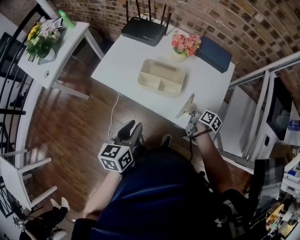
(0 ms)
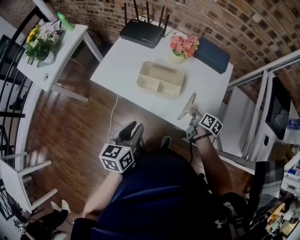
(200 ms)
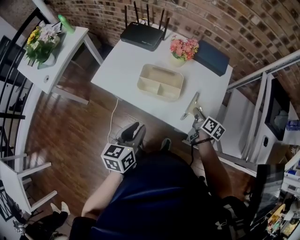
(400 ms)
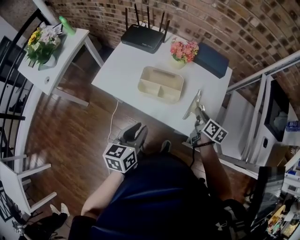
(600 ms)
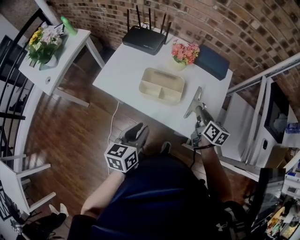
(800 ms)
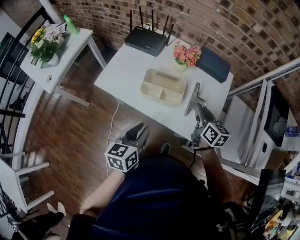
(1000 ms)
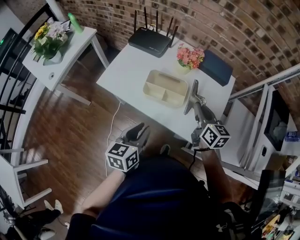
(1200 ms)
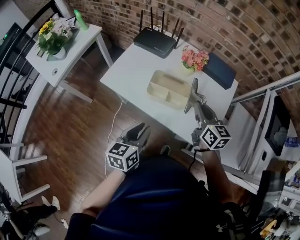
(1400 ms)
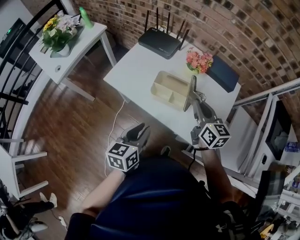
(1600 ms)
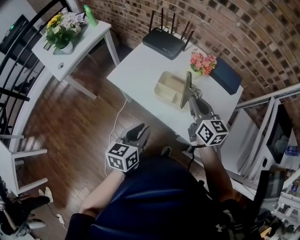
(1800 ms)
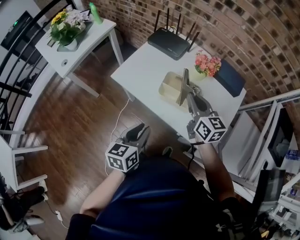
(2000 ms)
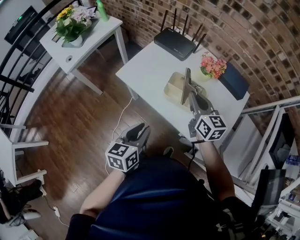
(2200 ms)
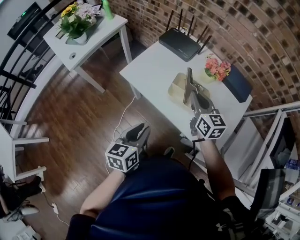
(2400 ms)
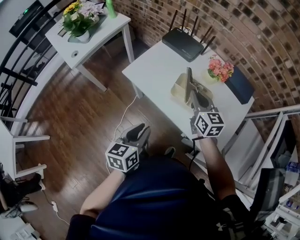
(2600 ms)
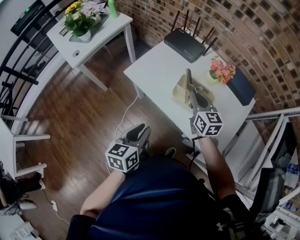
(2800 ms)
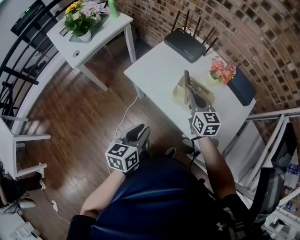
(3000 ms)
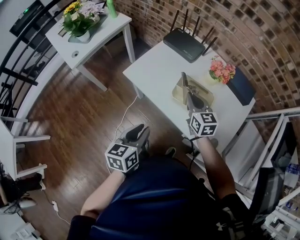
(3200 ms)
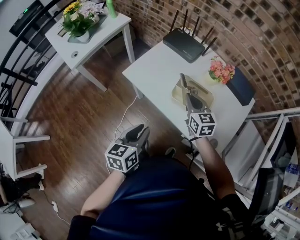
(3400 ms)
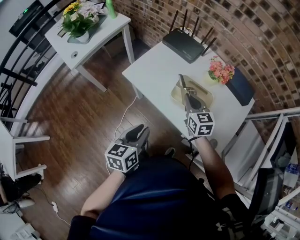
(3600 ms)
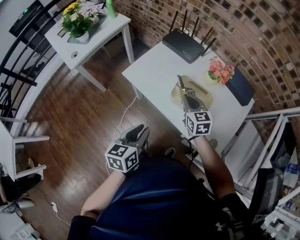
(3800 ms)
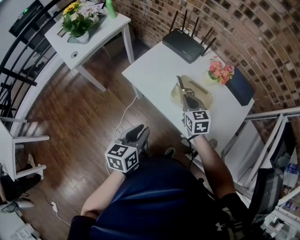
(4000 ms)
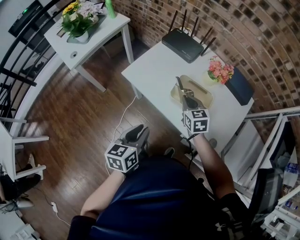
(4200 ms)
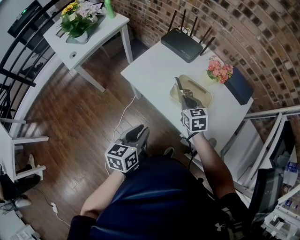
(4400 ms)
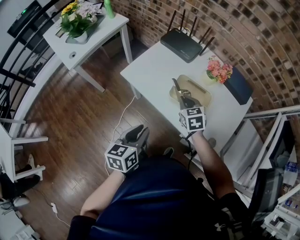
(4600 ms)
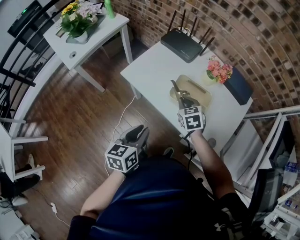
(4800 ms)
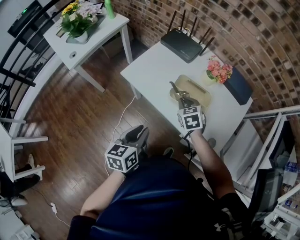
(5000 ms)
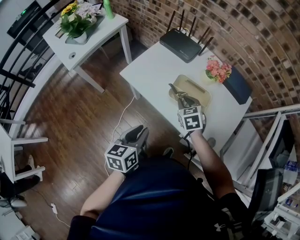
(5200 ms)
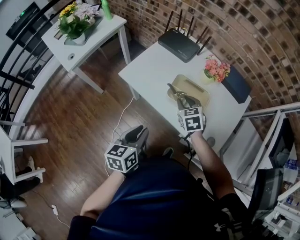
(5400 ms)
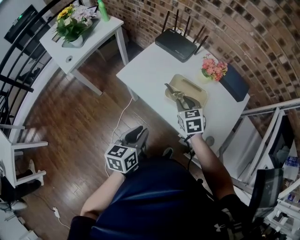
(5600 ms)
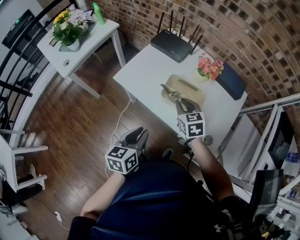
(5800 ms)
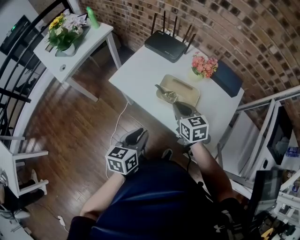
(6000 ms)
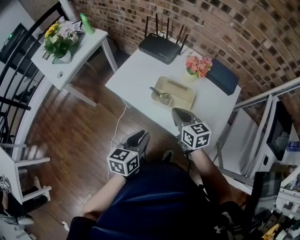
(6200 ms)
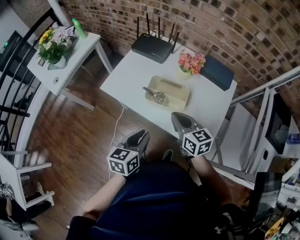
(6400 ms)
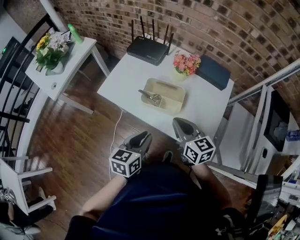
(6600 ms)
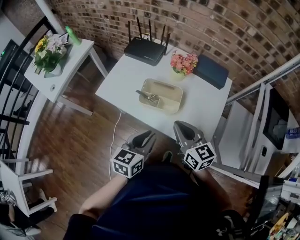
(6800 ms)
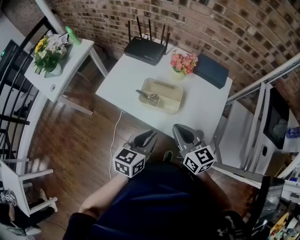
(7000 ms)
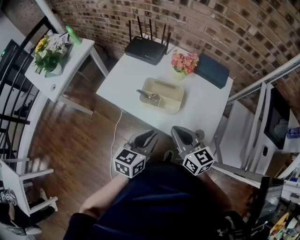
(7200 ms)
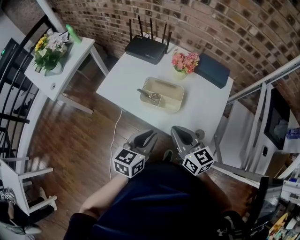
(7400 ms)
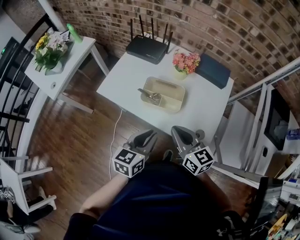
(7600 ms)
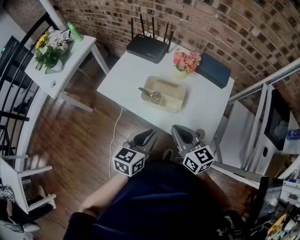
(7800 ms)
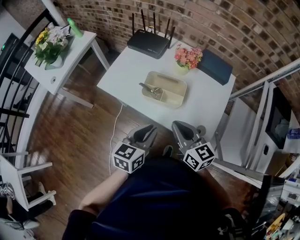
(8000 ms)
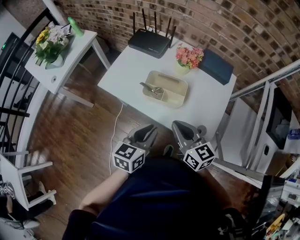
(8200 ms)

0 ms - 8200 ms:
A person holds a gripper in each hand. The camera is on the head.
0 ms - 1600 ms: The right gripper travels upward and to the left by approximately 25 cm, and rolls counterclockwise, seen from behind, by about 50 degrees.
1600 ms - 3200 ms: The right gripper moves to the left, downward and forward, about 15 cm, while the left gripper shifts approximately 10 cm to the left.
3200 ms - 5000 ms: The right gripper goes roughly 5 cm downward, and swivels about 30 degrees.
5000 ms - 6600 ms: The left gripper goes some 10 cm to the right. Meanwhile the right gripper heads upward, backward and to the right, covering some 20 cm, and points its fingers about 30 degrees further upward.
6600 ms - 8200 ms: The grippers make only small movements.

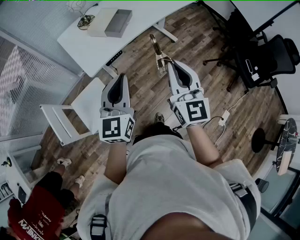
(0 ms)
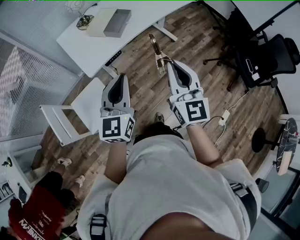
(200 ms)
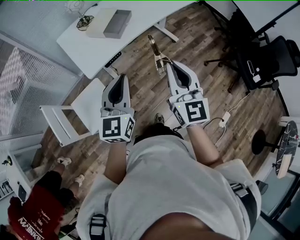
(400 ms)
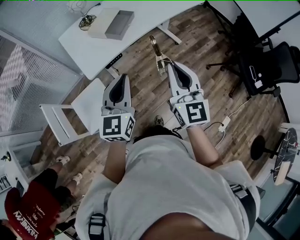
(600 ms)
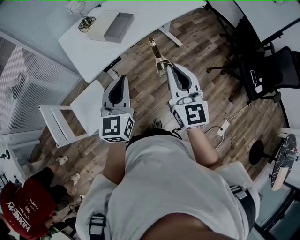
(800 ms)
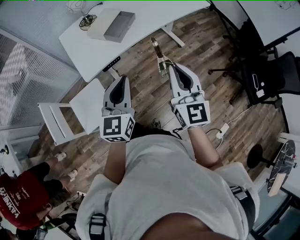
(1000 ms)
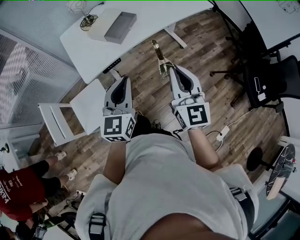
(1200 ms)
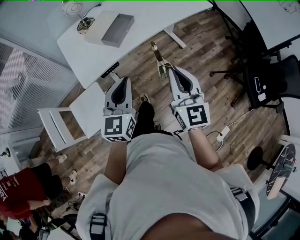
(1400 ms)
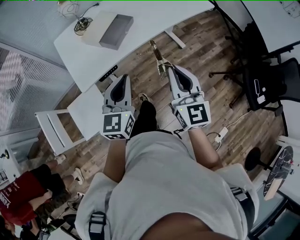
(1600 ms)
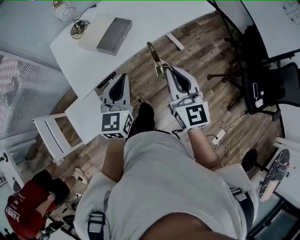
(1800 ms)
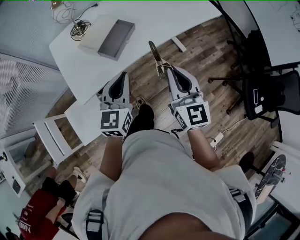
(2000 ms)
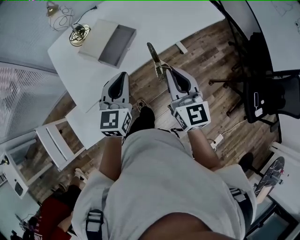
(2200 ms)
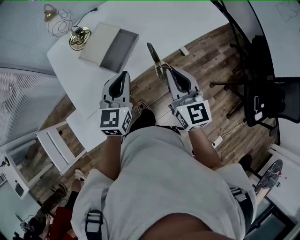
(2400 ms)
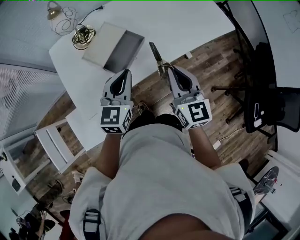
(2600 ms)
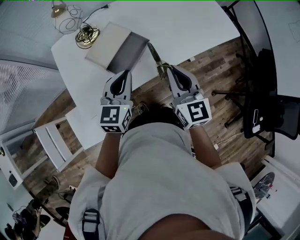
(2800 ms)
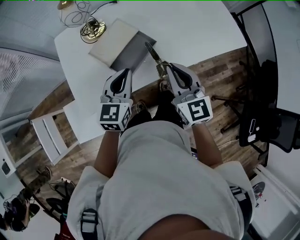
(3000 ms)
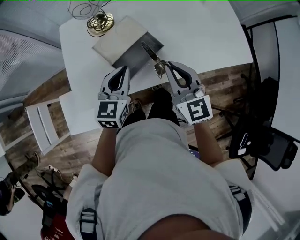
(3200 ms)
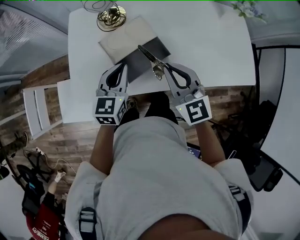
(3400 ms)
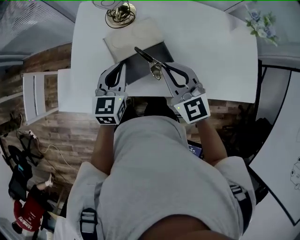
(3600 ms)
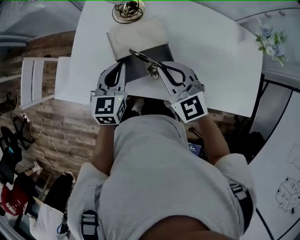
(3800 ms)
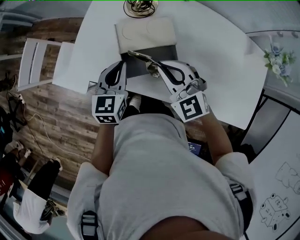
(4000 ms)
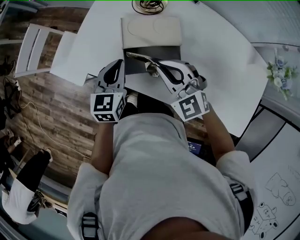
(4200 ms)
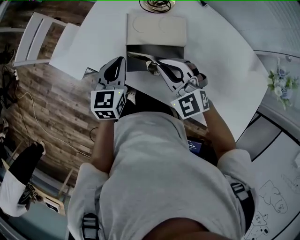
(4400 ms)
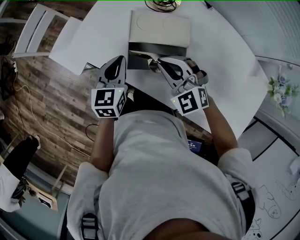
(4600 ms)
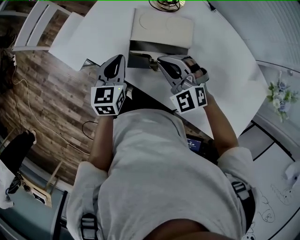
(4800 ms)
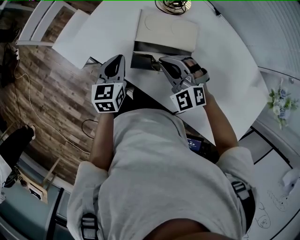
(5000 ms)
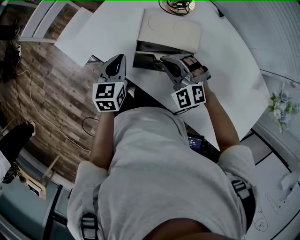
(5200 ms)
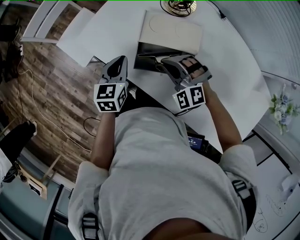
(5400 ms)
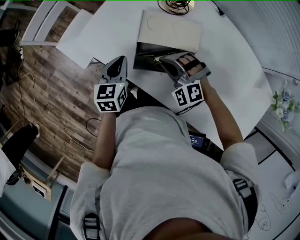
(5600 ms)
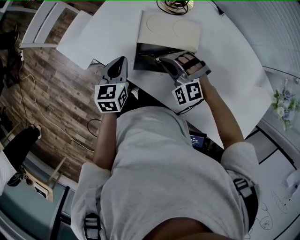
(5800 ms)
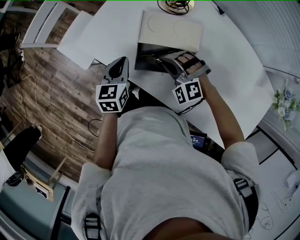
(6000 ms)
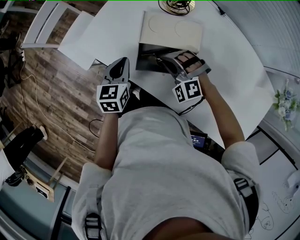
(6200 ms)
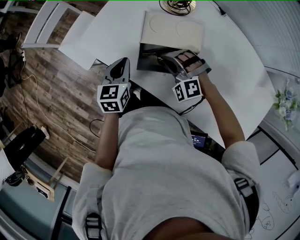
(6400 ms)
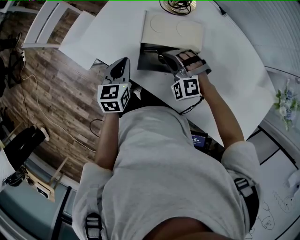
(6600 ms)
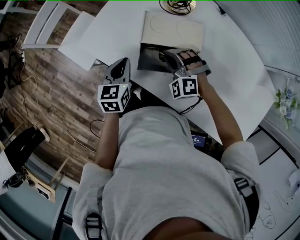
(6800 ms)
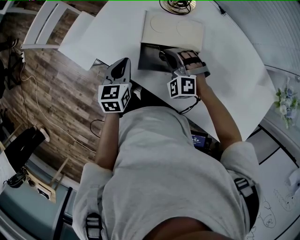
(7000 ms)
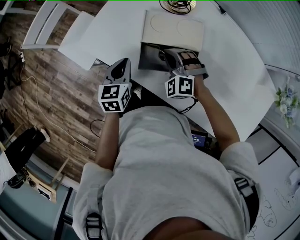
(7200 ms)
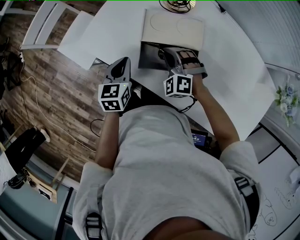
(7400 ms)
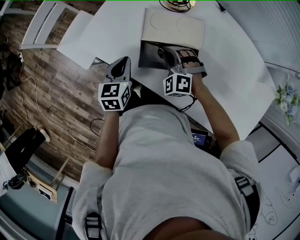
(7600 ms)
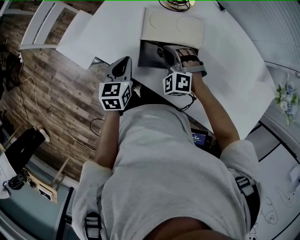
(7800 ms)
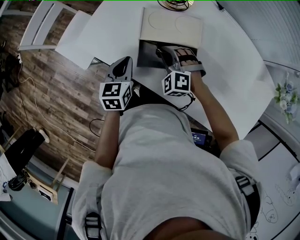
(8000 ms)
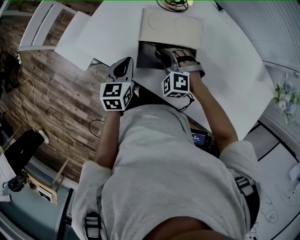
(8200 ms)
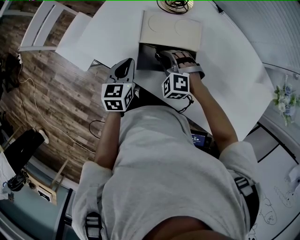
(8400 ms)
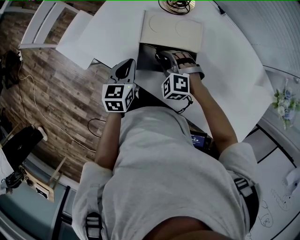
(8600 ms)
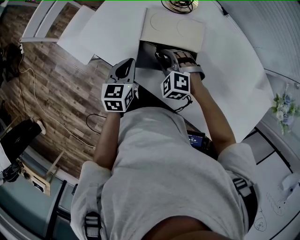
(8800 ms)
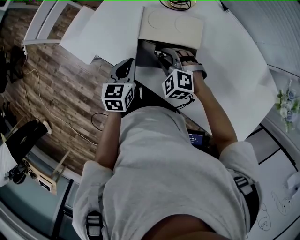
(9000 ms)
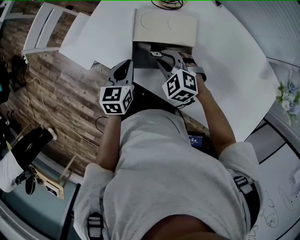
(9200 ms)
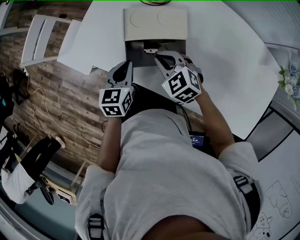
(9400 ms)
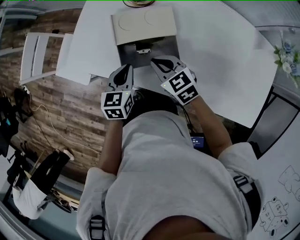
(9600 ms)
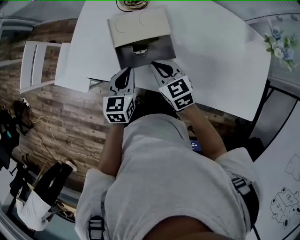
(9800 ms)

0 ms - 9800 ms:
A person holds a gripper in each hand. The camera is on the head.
0 ms - 1400 ms: The right gripper is displaced forward and to the right by approximately 15 cm, while the left gripper moves forward, to the right and downward, roughly 15 cm.
1400 ms - 2800 ms: Both grippers move forward, approximately 30 cm.
2800 ms - 4200 ms: The left gripper moves some 15 cm, and swivels some 60 degrees, while the right gripper moves some 20 cm, and turns by roughly 80 degrees.
4200 ms - 5600 ms: The left gripper is displaced downward by about 5 cm; the right gripper travels downward by some 10 cm, and swivels some 40 degrees.
5600 ms - 7000 ms: The grippers move only a little.
7000 ms - 8400 ms: There are only small adjustments of the grippers.
8400 ms - 9800 ms: The left gripper shifts approximately 5 cm to the right, while the right gripper is displaced upward and backward by roughly 10 cm, rolls clockwise, seen from behind, by approximately 70 degrees, and opens, then closes once more.

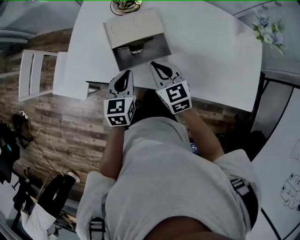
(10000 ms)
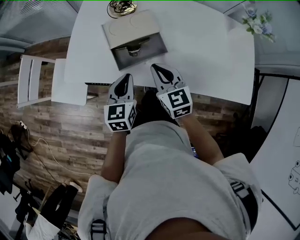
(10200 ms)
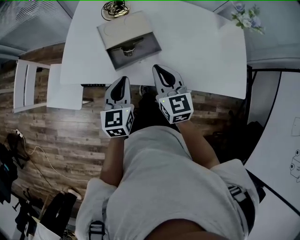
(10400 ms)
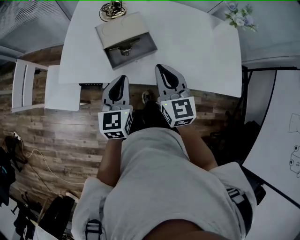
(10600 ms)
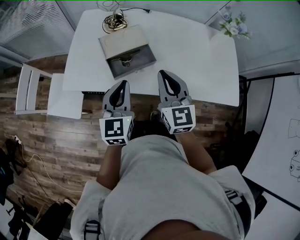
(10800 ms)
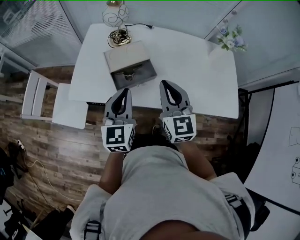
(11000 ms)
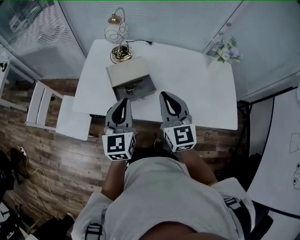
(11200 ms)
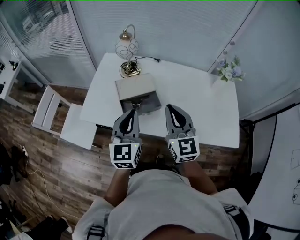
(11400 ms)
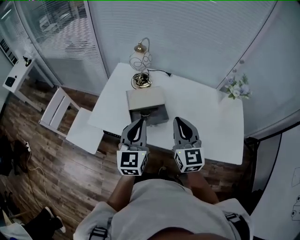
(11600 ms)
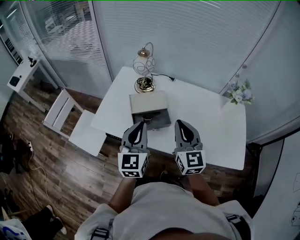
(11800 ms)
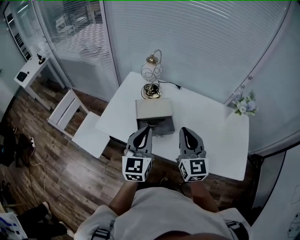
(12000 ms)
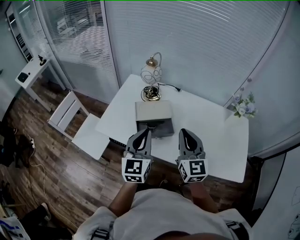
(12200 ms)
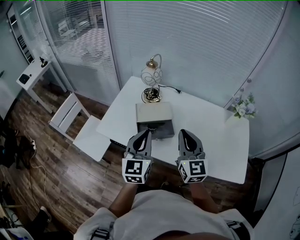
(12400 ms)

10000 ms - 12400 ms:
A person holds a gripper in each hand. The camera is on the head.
10000 ms - 11200 ms: The grippers both shift upward by approximately 20 cm. The left gripper swivels about 30 degrees. Meanwhile the right gripper changes its angle by roughly 30 degrees.
11200 ms - 12400 ms: The grippers stay close to where they were, moving slightly.

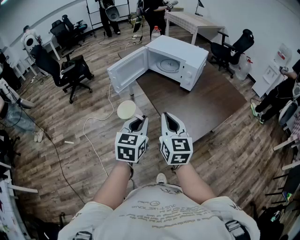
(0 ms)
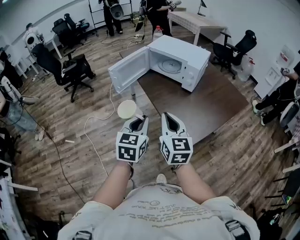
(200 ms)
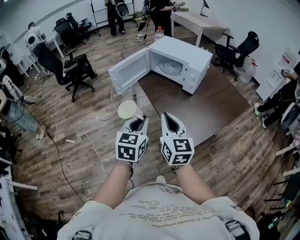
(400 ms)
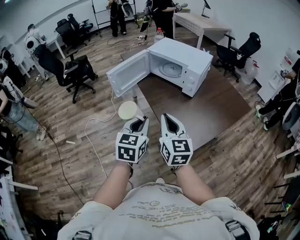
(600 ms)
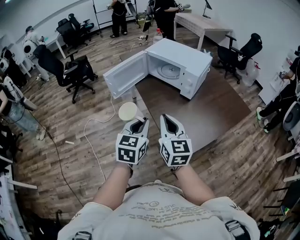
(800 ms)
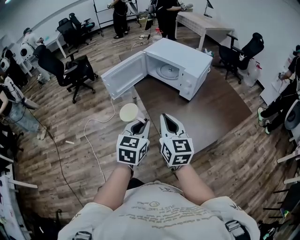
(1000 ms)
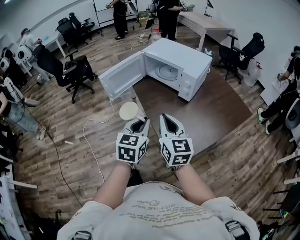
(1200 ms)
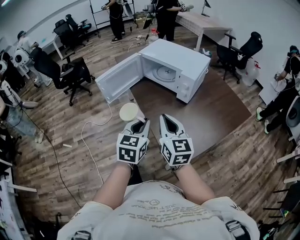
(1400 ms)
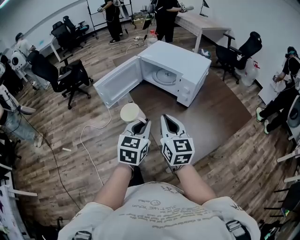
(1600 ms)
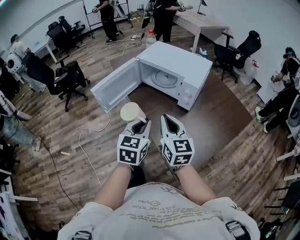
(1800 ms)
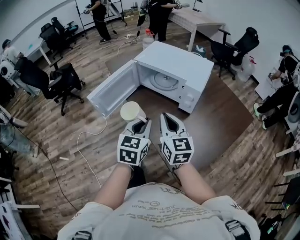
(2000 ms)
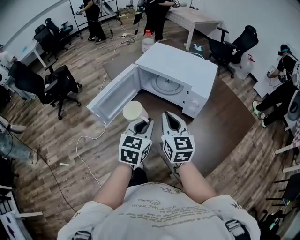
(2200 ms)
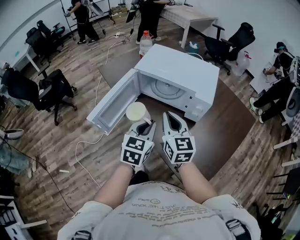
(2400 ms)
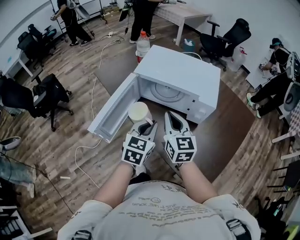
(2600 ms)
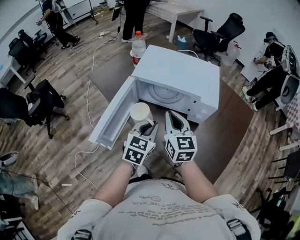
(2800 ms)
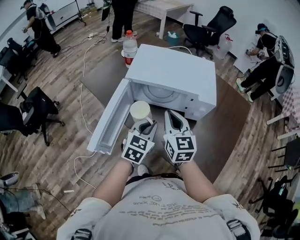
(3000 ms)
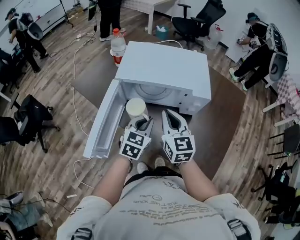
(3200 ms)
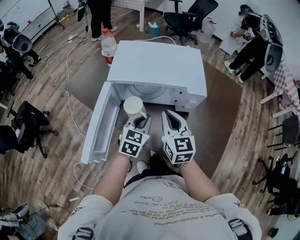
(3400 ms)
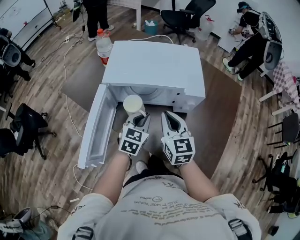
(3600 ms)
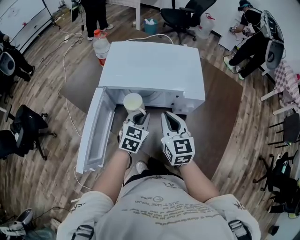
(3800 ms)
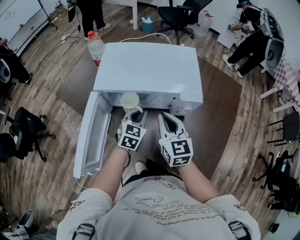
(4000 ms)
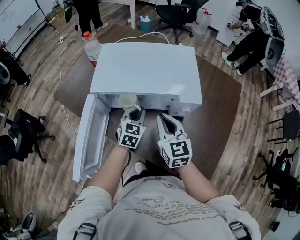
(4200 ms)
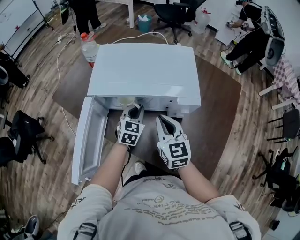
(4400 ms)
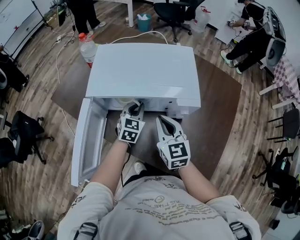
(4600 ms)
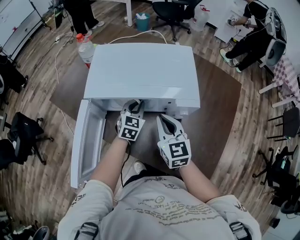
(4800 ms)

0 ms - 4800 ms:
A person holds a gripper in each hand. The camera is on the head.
0 ms - 1600 ms: Both grippers move forward and to the right, approximately 15 cm.
1600 ms - 3200 ms: The right gripper shifts by about 30 cm, and changes its angle by some 30 degrees, while the left gripper shifts by about 30 cm, and changes its angle by about 40 degrees.
3200 ms - 4800 ms: The left gripper goes approximately 20 cm forward and downward; the right gripper heads forward, to the right and downward, covering about 10 cm.
